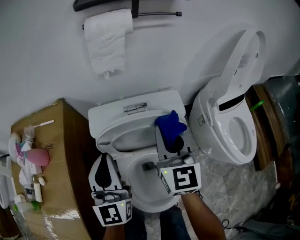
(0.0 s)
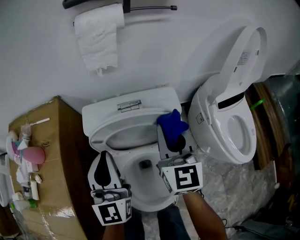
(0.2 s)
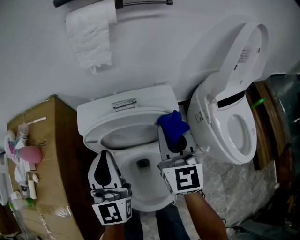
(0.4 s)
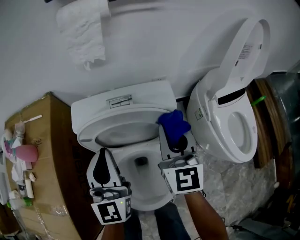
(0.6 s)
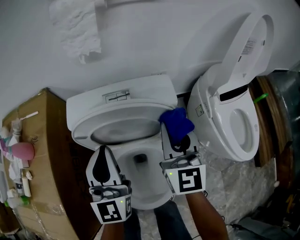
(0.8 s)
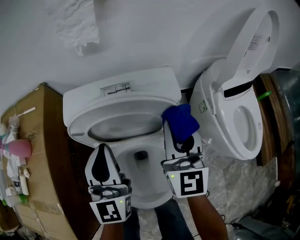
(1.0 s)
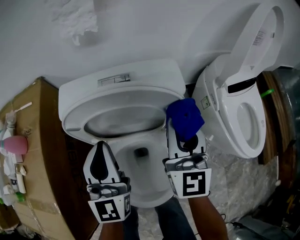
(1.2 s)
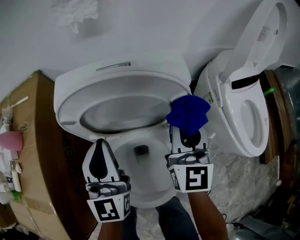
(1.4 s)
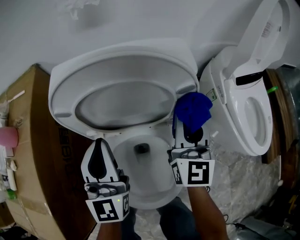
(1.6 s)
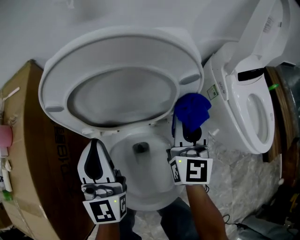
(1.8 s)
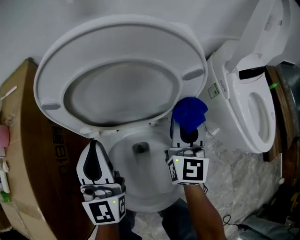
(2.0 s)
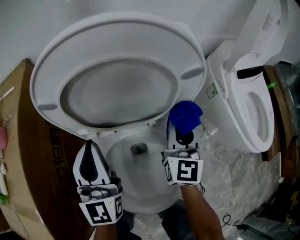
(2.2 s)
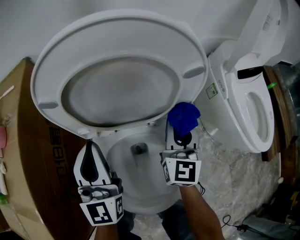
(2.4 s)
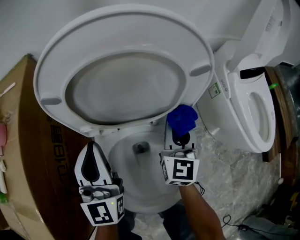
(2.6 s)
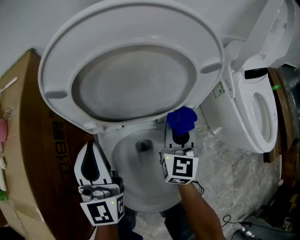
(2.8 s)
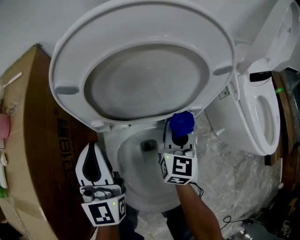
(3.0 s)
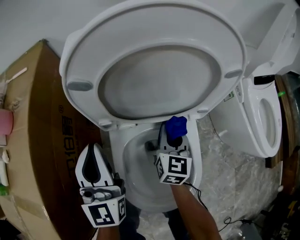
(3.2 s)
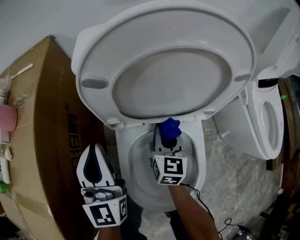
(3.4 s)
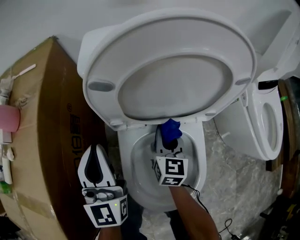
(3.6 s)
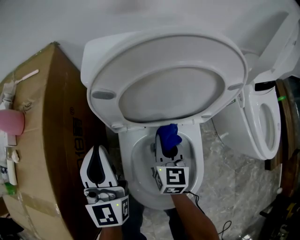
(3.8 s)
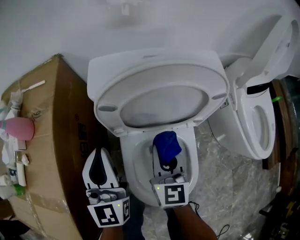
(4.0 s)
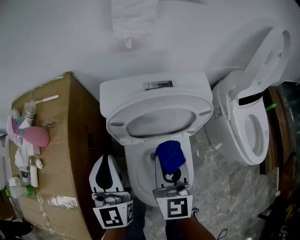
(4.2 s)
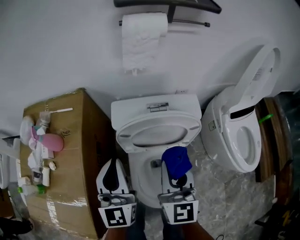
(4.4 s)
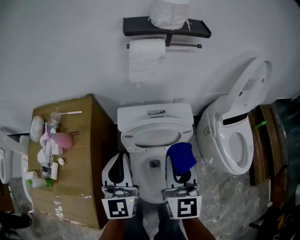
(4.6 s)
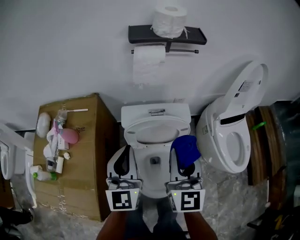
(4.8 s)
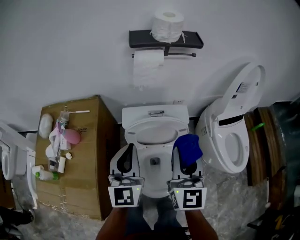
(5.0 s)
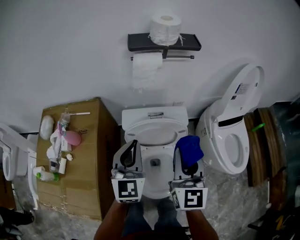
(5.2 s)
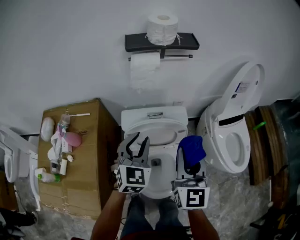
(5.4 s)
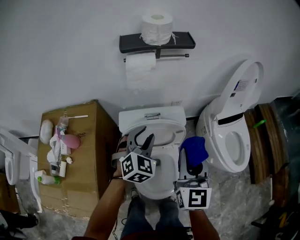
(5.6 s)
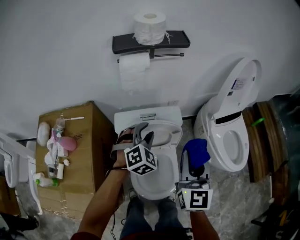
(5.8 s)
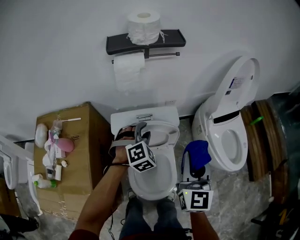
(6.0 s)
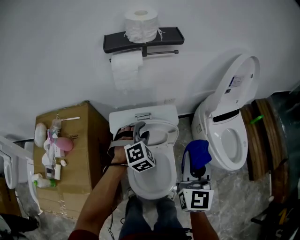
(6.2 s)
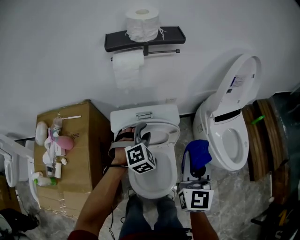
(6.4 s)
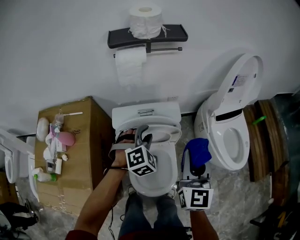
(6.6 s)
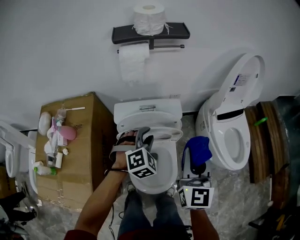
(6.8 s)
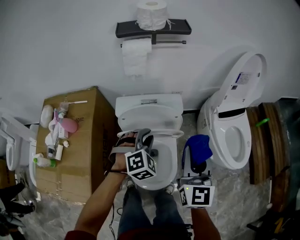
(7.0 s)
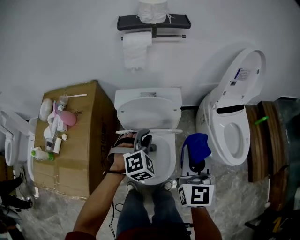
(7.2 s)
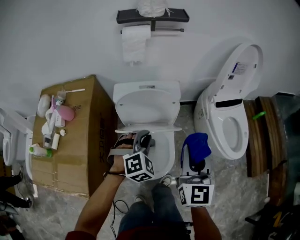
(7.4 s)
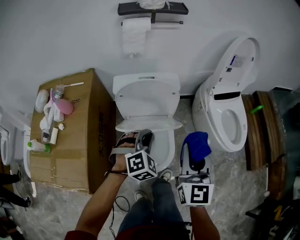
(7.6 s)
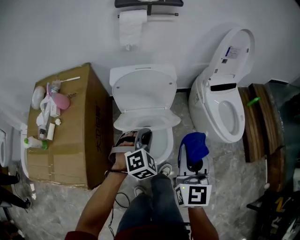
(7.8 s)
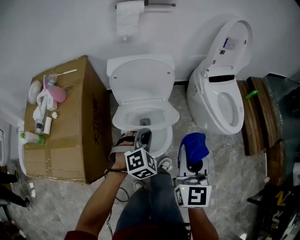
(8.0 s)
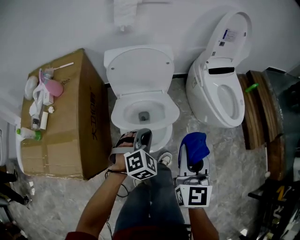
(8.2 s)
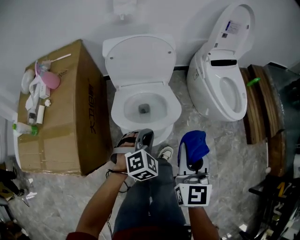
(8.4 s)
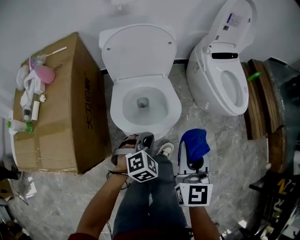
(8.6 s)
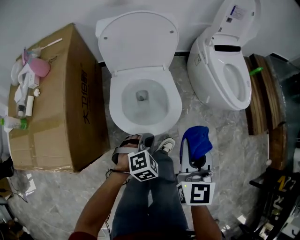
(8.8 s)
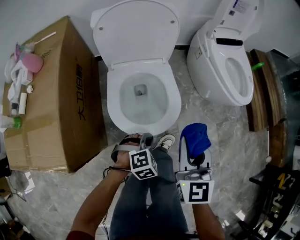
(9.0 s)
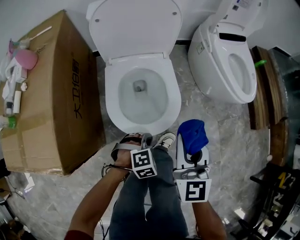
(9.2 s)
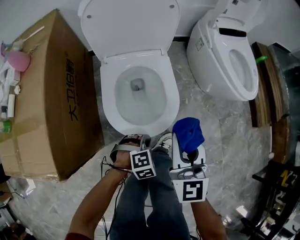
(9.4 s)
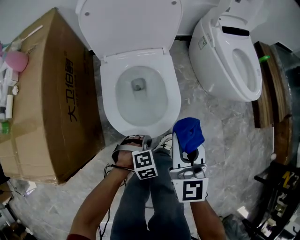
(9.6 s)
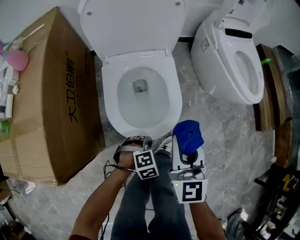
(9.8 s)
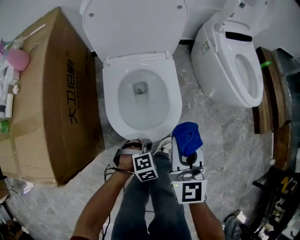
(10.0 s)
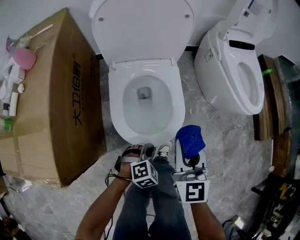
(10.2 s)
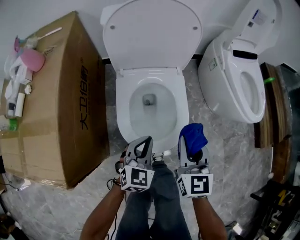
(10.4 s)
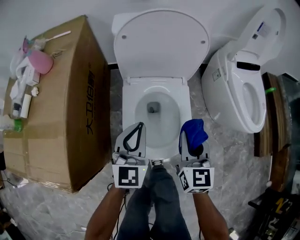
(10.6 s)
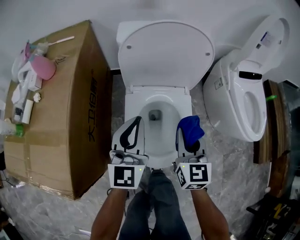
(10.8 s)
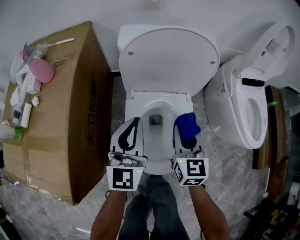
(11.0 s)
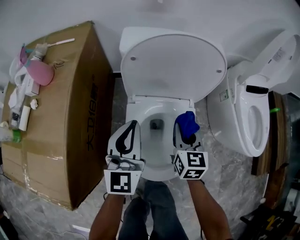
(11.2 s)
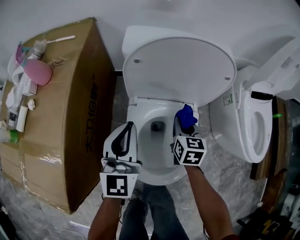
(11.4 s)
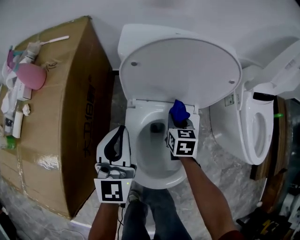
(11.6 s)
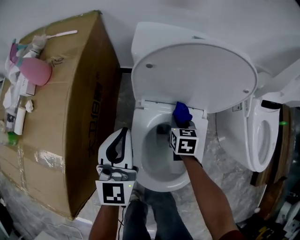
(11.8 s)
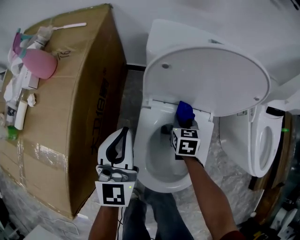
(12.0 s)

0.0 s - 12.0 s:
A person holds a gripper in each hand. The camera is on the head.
0.0 s - 1.6 s: The right gripper goes some 20 cm downward and to the right. Meanwhile the left gripper moves downward, about 15 cm.
1.6 s - 3.0 s: The right gripper moves downward, approximately 15 cm. The left gripper is displaced to the left and downward by roughly 10 cm.
3.0 s - 4.4 s: Both grippers move upward, roughly 30 cm.
4.4 s - 6.0 s: The left gripper is displaced to the right and forward by some 20 cm, points its fingers some 50 degrees further downward, and opens its fingers. The right gripper moves to the right and upward, some 20 cm.
6.0 s - 7.6 s: Both grippers move backward, some 20 cm. The left gripper closes.
7.6 s - 9.0 s: The grippers both shift downward and backward by approximately 30 cm. The left gripper turns by roughly 30 degrees.
9.0 s - 10.4 s: The left gripper is displaced to the left and forward by roughly 10 cm, goes downward and returns, roughly 15 cm each way, and tips its fingers upward by roughly 30 degrees, while the right gripper travels downward, forward and to the left by some 15 cm.
10.4 s - 12.0 s: The left gripper goes roughly 30 cm forward, to the left and upward, and changes its angle by approximately 40 degrees. Meanwhile the right gripper is displaced forward and downward by about 35 cm, and swivels some 30 degrees.

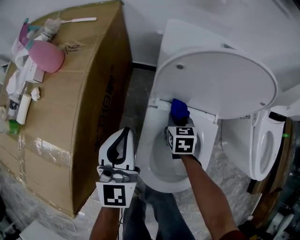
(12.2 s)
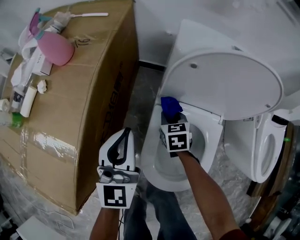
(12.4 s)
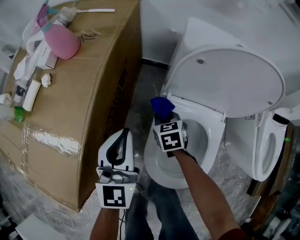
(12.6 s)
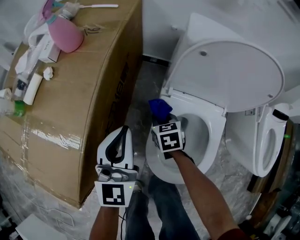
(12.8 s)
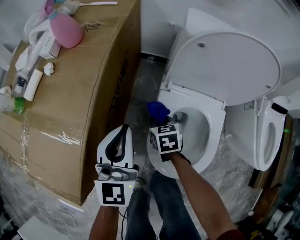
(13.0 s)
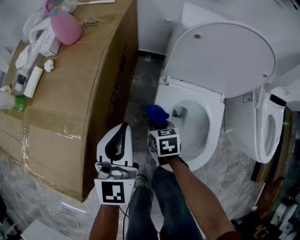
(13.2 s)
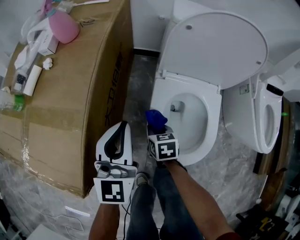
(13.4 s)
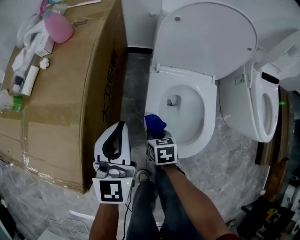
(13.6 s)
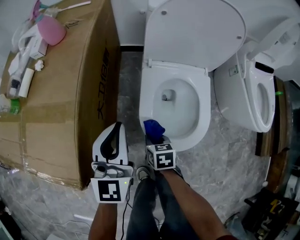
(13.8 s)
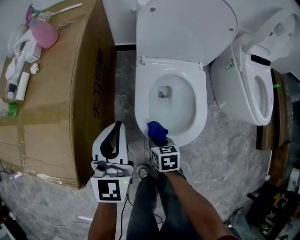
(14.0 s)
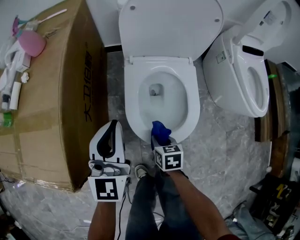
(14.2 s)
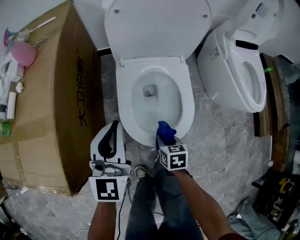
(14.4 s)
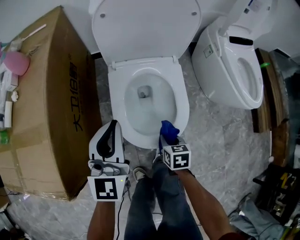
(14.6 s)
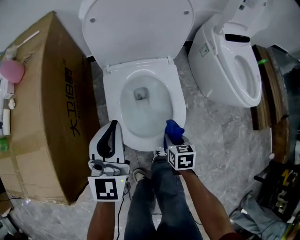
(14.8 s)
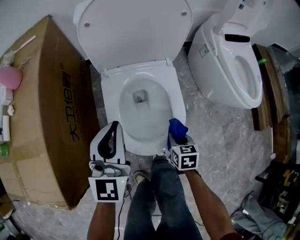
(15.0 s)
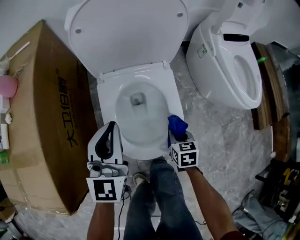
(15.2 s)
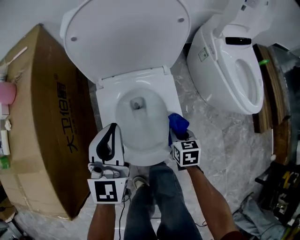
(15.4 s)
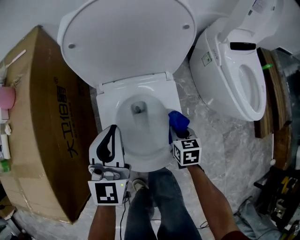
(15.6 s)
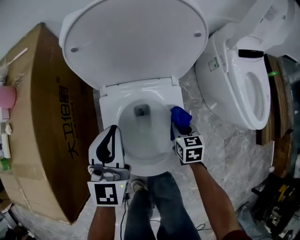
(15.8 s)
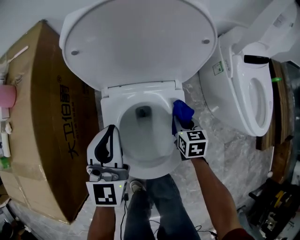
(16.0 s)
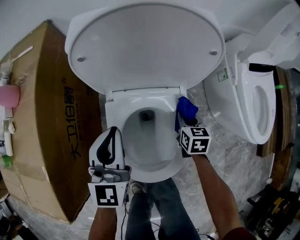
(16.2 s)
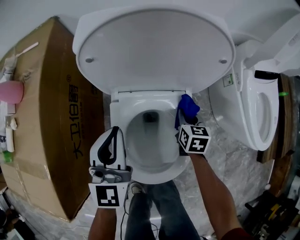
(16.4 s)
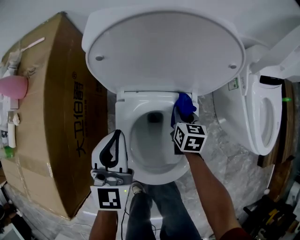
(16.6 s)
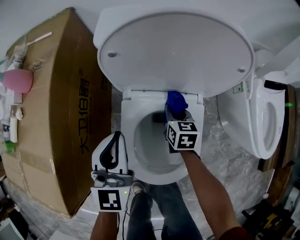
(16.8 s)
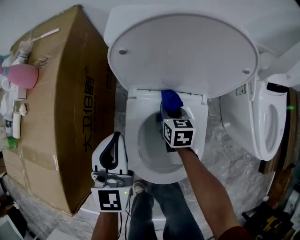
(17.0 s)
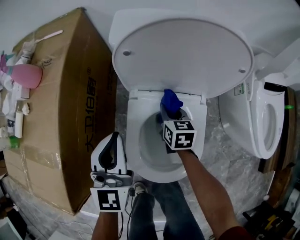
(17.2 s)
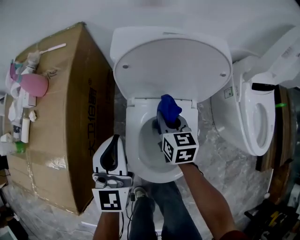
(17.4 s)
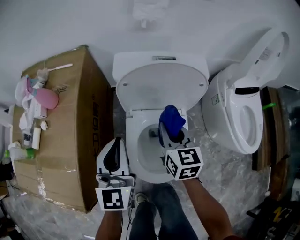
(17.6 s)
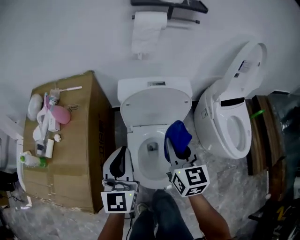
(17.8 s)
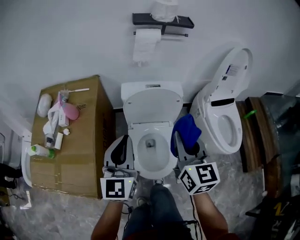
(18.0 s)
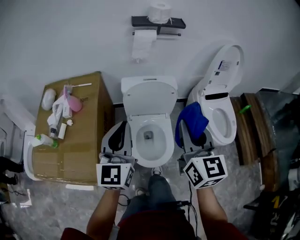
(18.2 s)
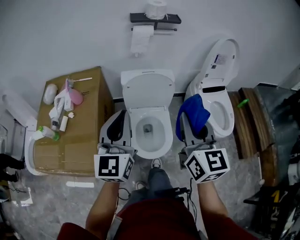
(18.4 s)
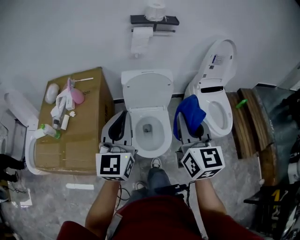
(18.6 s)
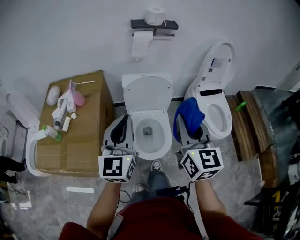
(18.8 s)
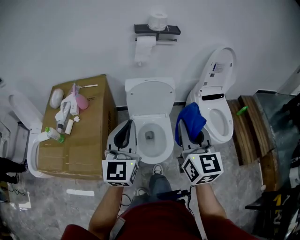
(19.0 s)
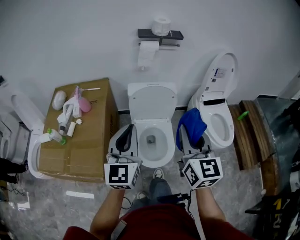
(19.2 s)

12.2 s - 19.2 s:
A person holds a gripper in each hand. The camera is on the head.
12.2 s - 13.6 s: The right gripper travels backward and to the left by approximately 30 cm, while the left gripper shifts about 15 cm backward and to the left.
13.6 s - 15.0 s: The left gripper shifts about 15 cm to the right. The right gripper moves to the right, about 25 cm, and changes its angle by approximately 20 degrees.
15.0 s - 16.4 s: The right gripper travels forward by roughly 30 cm. Meanwhile the left gripper moves forward, about 15 cm.
16.4 s - 17.8 s: The left gripper moves upward, some 25 cm. The right gripper moves upward, roughly 40 cm, and rotates about 30 degrees.
17.8 s - 19.2 s: The grippers both shift upward and backward by roughly 30 cm.

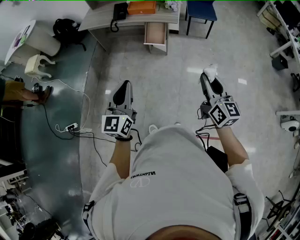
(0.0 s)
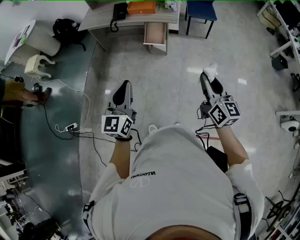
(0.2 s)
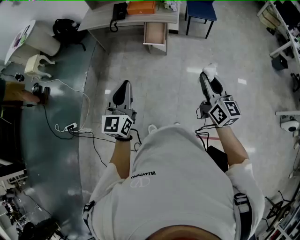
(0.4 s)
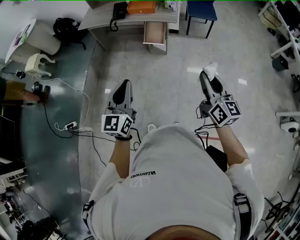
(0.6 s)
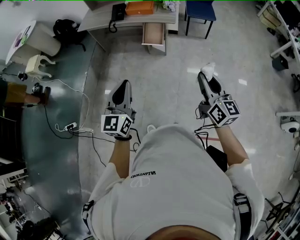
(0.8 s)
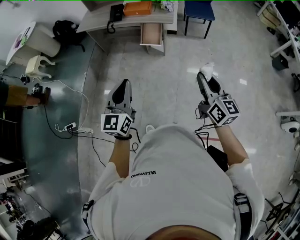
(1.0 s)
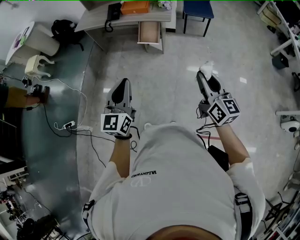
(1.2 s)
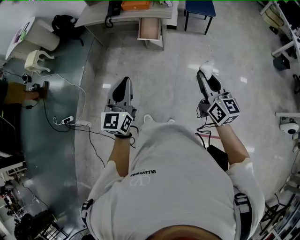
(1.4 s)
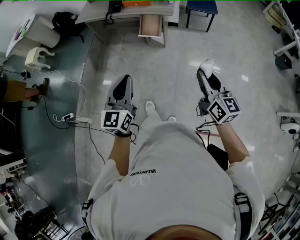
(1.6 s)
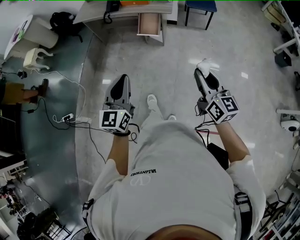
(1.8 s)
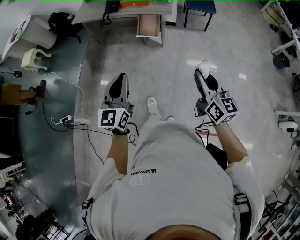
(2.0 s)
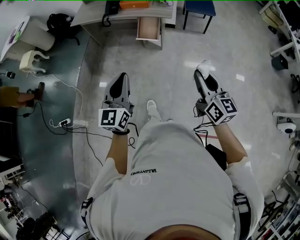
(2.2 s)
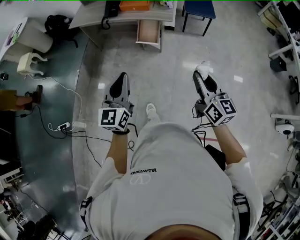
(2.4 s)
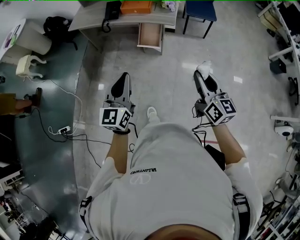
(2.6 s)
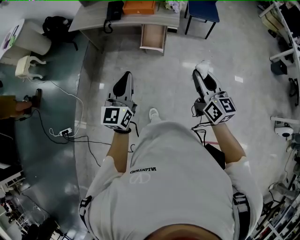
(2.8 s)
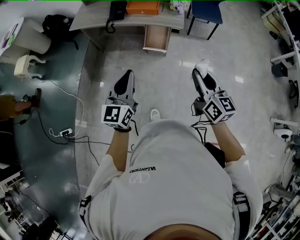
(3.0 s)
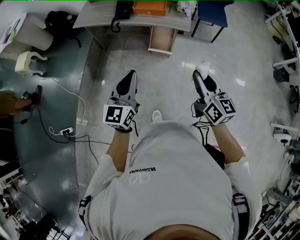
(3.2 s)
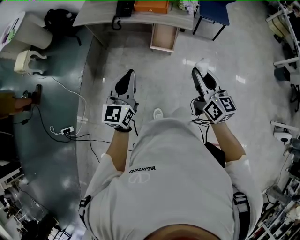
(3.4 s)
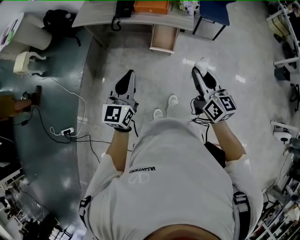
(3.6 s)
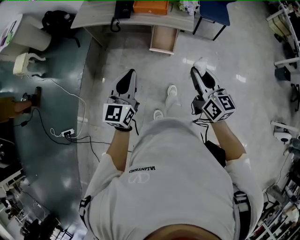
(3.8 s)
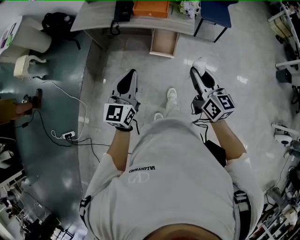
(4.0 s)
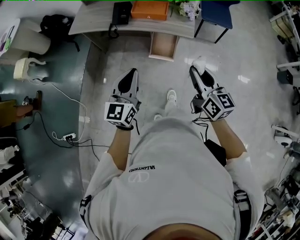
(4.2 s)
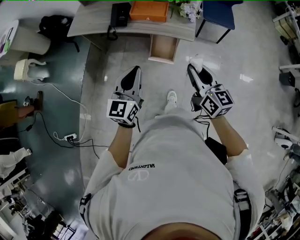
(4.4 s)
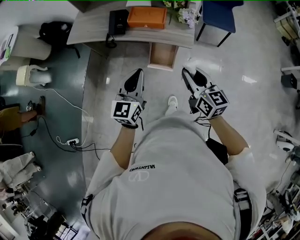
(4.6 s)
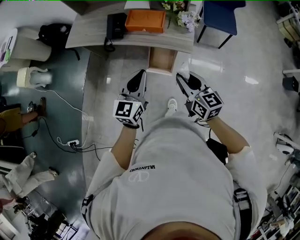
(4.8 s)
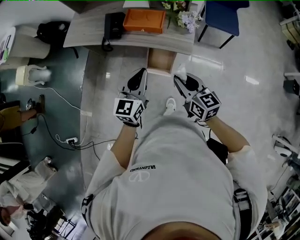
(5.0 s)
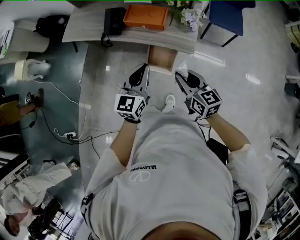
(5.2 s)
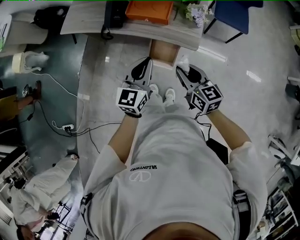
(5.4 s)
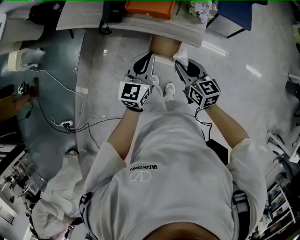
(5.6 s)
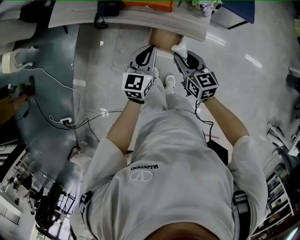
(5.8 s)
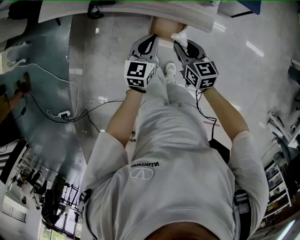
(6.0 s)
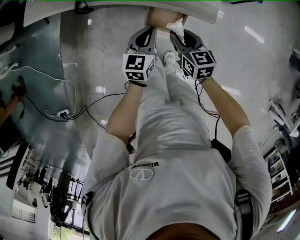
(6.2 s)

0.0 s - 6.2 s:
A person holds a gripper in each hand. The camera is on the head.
0.0 s - 1.6 s: Both grippers move to the right, about 10 cm.
1.6 s - 3.2 s: Both grippers travel together forward and to the left, approximately 25 cm.
3.2 s - 4.6 s: Both grippers travel together forward, about 20 cm.
4.6 s - 6.2 s: The grippers both shift downward and forward by roughly 35 cm. The left gripper turns by about 20 degrees. The right gripper changes its angle by about 30 degrees.
